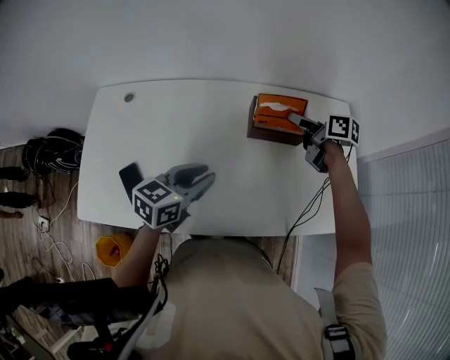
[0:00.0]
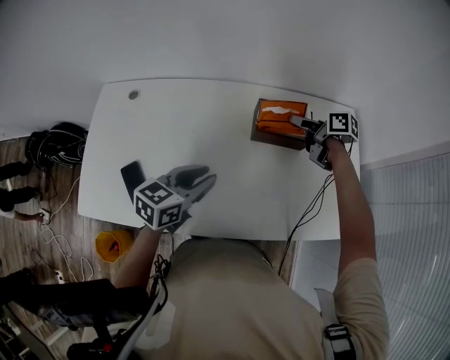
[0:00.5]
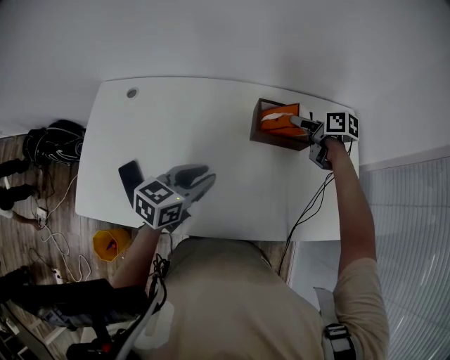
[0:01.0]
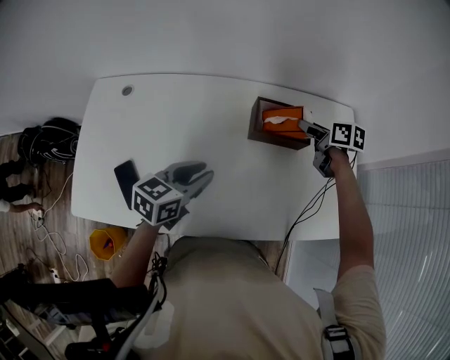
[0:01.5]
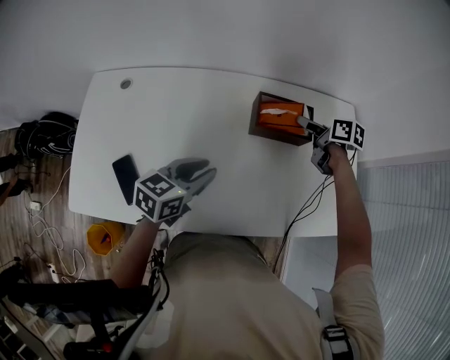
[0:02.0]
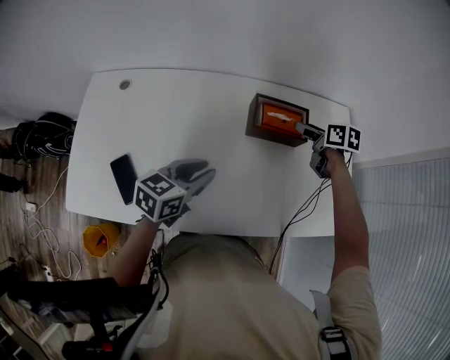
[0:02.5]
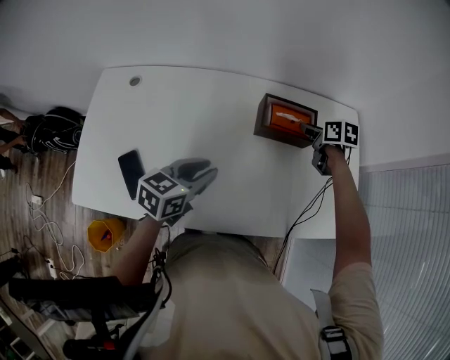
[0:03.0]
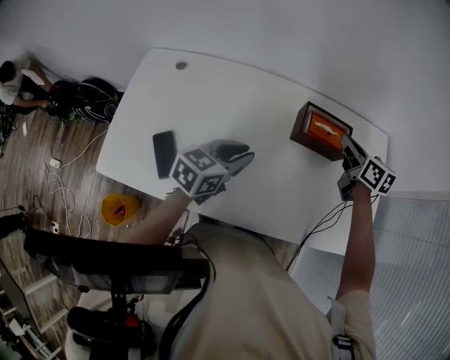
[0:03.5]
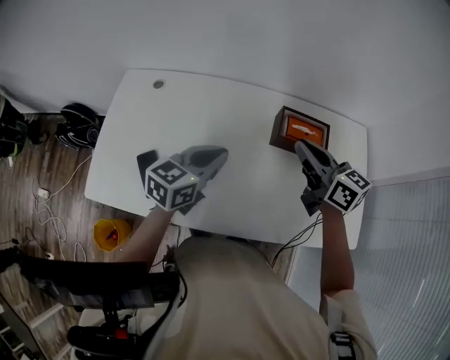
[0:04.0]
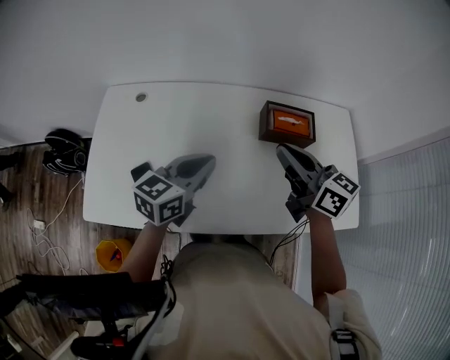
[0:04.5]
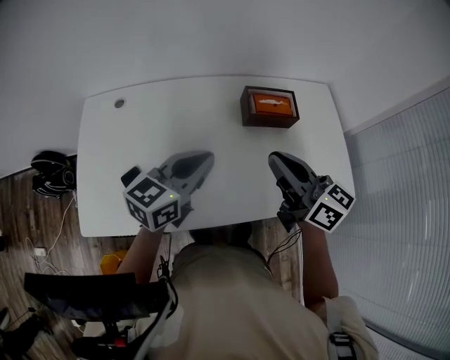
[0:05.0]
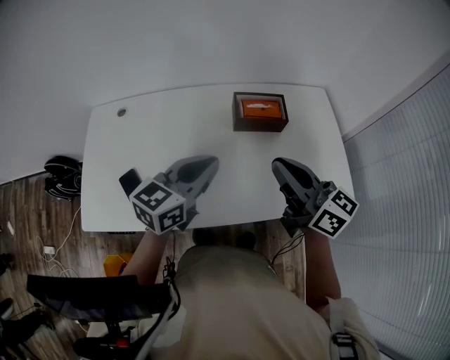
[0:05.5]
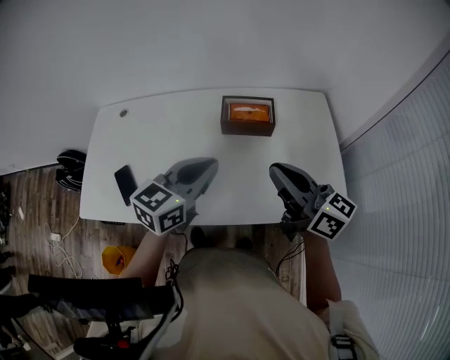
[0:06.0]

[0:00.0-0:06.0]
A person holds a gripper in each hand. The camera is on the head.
0:00.0 to 0:02.0: The grippers move only a little.
0:02.0 to 0:04.0: The left gripper changes place by approximately 5 cm, and closes; the right gripper goes about 20 cm to the left, upward and backward, rotates roughly 40 degrees, and closes.
0:04.0 to 0:06.0: The left gripper goes roughly 20 cm to the right and backward; the right gripper heads backward and to the right, covering some 20 cm.

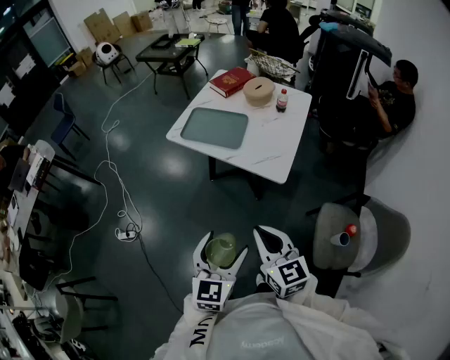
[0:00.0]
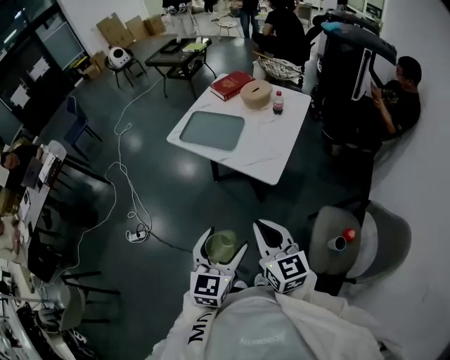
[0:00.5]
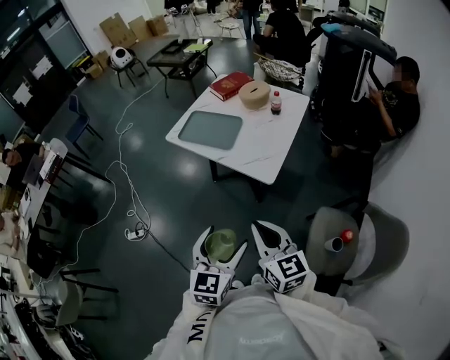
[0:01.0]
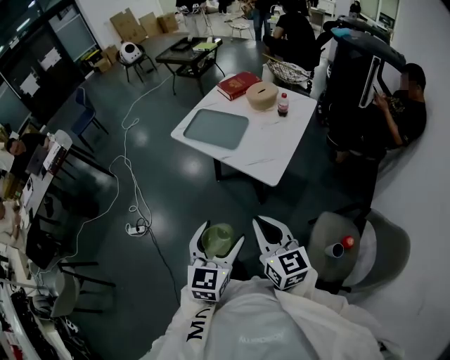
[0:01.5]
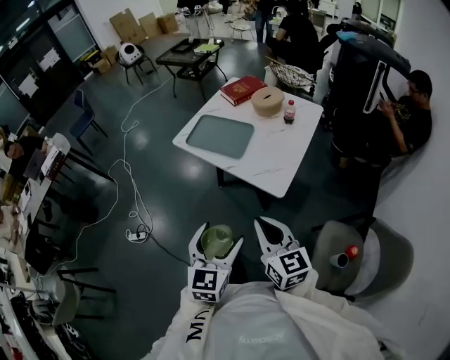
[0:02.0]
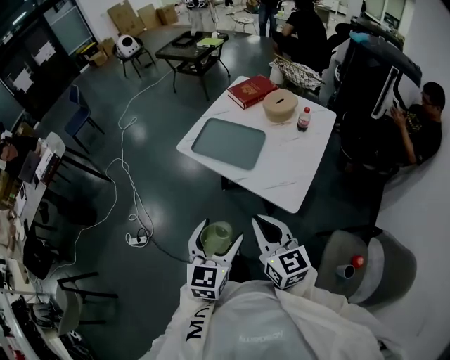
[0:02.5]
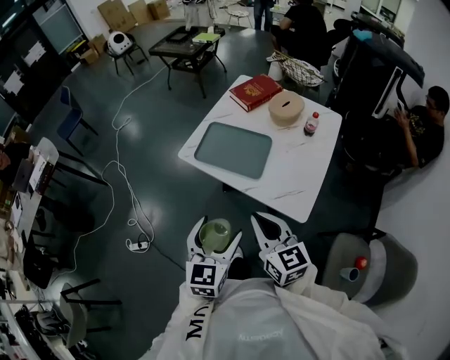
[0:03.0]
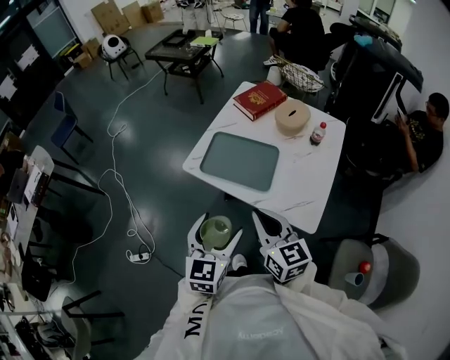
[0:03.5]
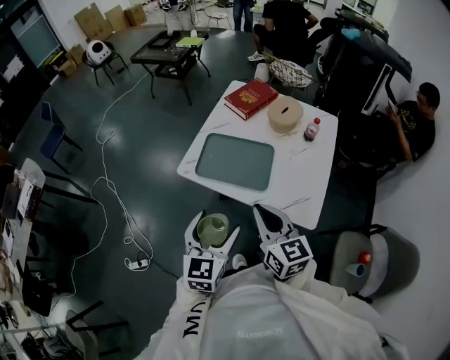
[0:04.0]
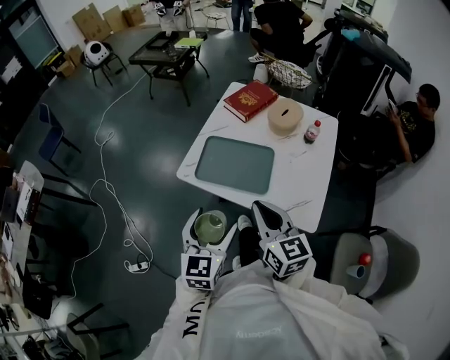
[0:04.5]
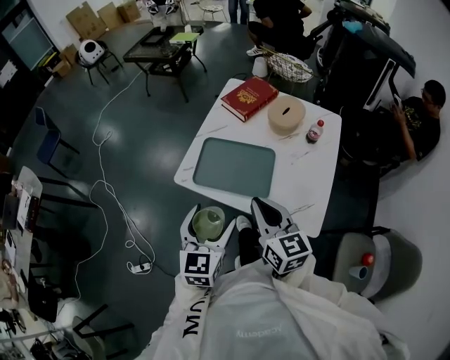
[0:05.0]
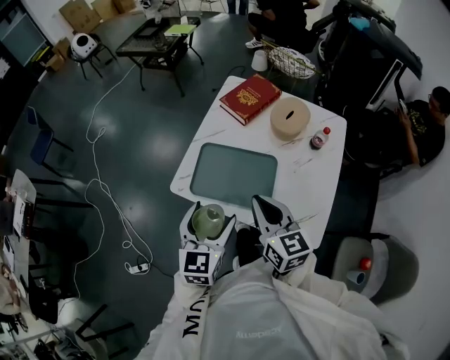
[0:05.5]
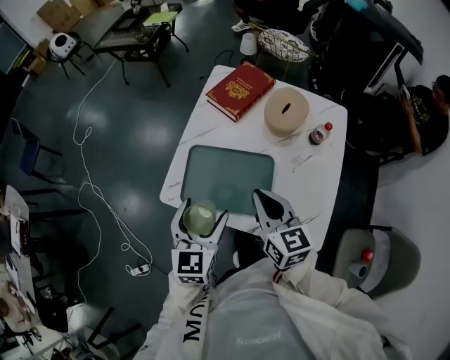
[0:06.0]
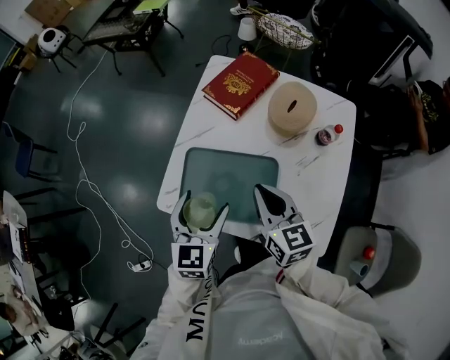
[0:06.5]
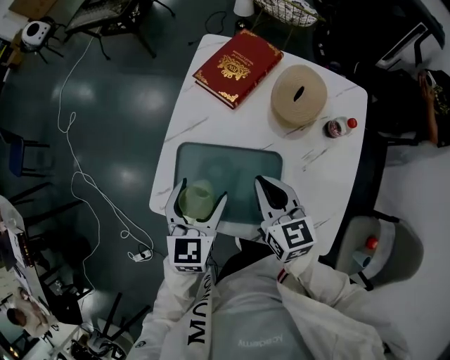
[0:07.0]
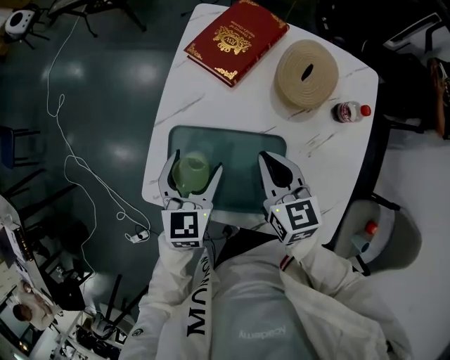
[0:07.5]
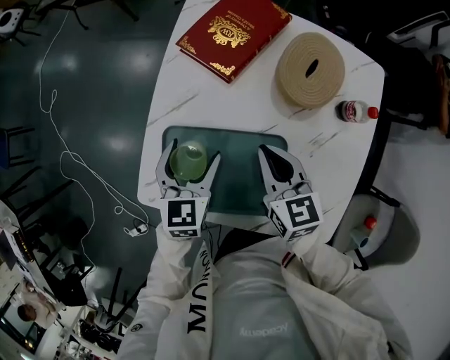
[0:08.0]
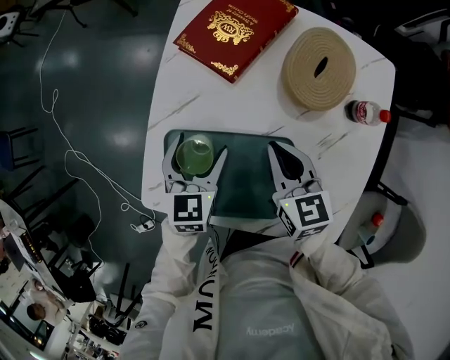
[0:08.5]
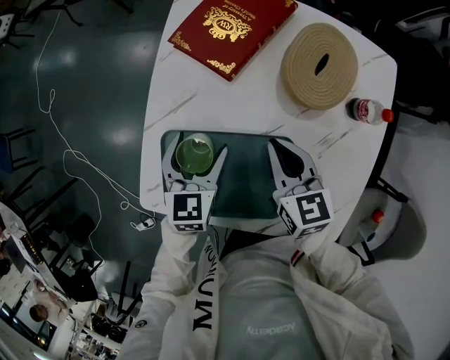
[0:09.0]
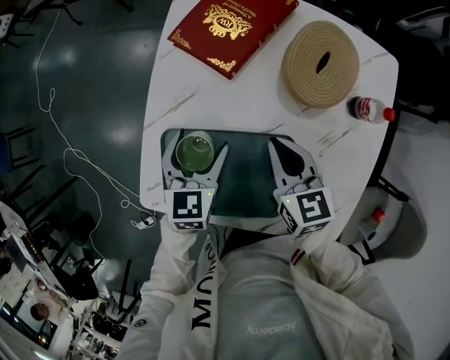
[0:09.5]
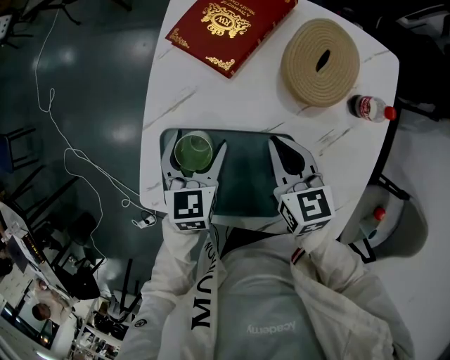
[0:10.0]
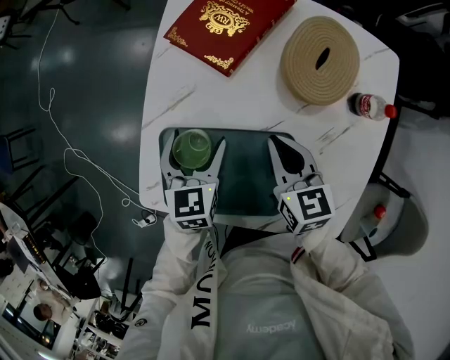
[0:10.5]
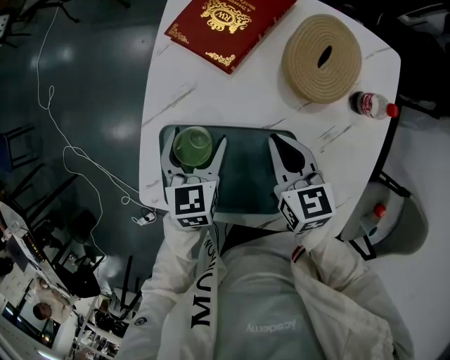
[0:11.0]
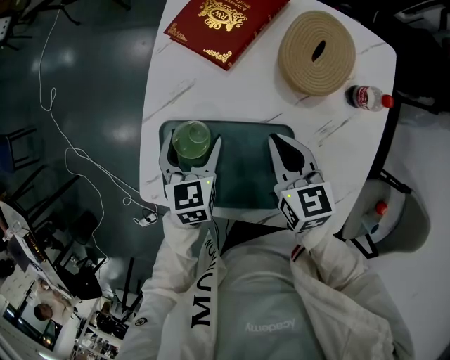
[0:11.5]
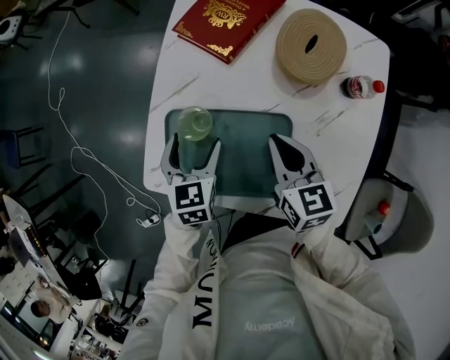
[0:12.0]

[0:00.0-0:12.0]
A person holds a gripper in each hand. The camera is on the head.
0:00.0 to 0:02.0: The grippers both shift to the right and forward by approximately 10 cm.
0:02.0 to 0:04.0: Both grippers travel together forward and to the left, about 30 cm.
0:04.0 to 0:06.0: Both grippers travel together forward, approximately 20 cm.
0:06.0 to 0:08.0: Both grippers travel together forward and downward, approximately 25 cm.
0:08.0 to 0:10.0: The grippers make only small movements.
0:10.0 to 0:12.0: The left gripper moves backward, roughly 5 cm. Meanwhile the right gripper moves about 5 cm.

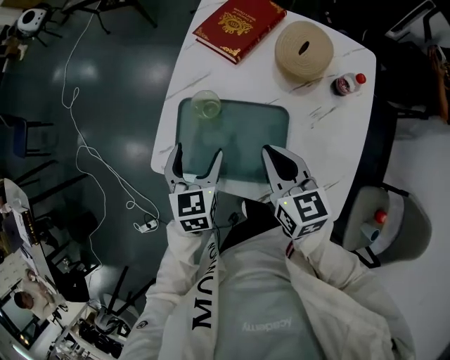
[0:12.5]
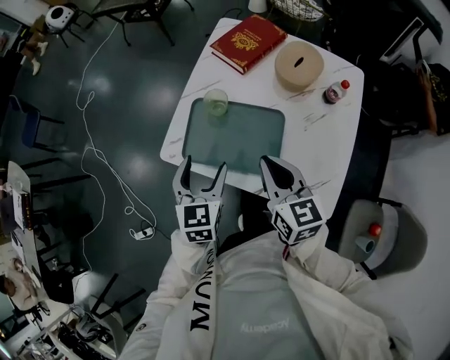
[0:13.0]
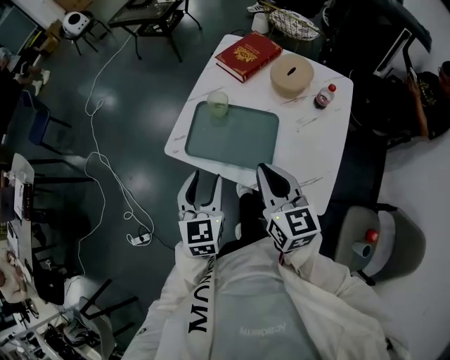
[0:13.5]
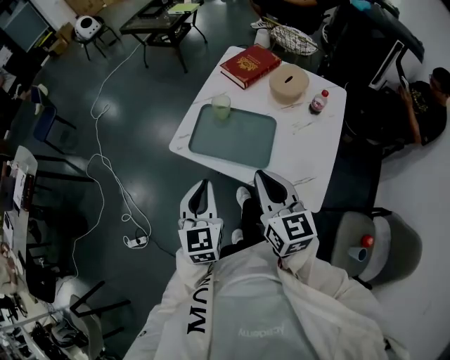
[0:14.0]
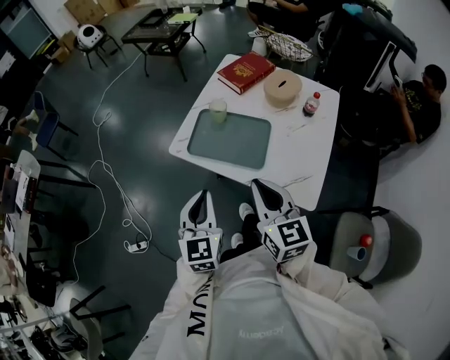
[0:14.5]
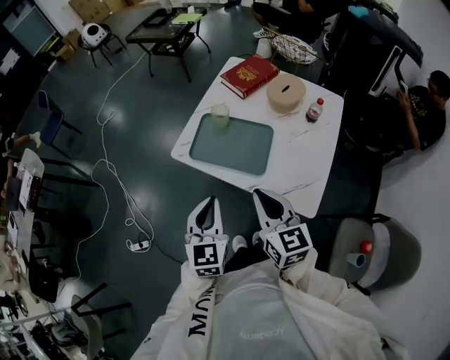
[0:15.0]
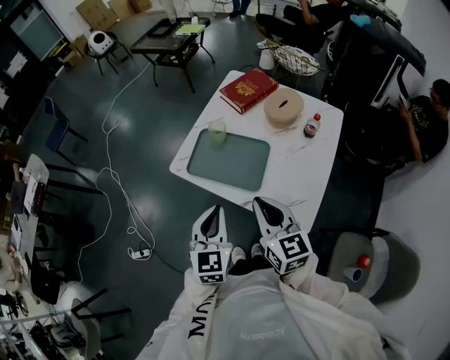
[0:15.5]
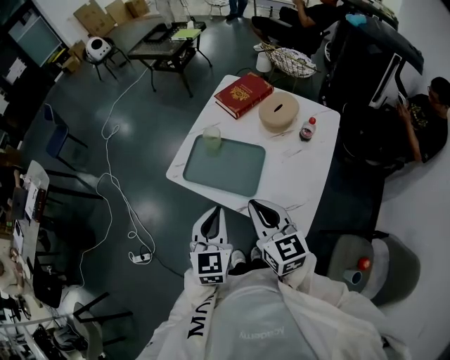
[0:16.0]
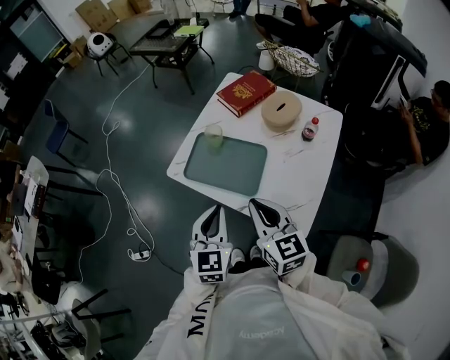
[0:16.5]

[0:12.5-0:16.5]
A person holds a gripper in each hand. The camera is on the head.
0:12.5 to 0:14.5: The grippers both shift backward and upward by approximately 30 cm. The left gripper rotates about 20 degrees, and closes its fingers.
0:14.5 to 0:16.5: The right gripper travels to the right by approximately 5 cm, while the left gripper is displaced to the right by some 10 cm.

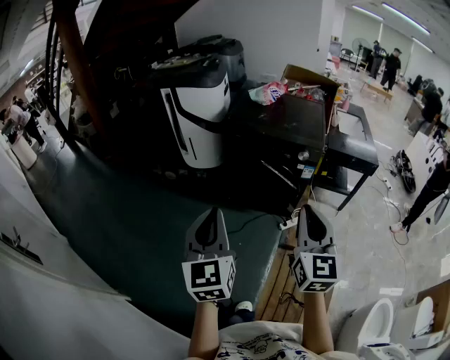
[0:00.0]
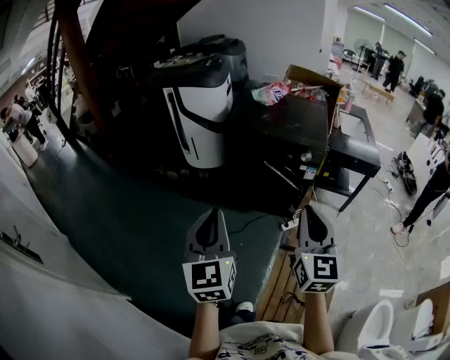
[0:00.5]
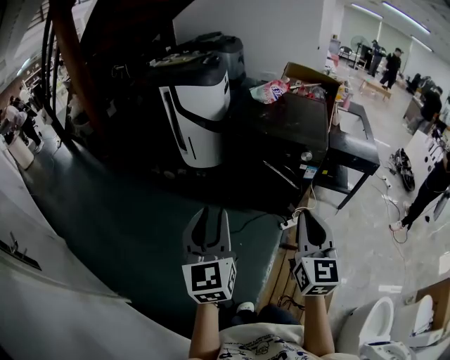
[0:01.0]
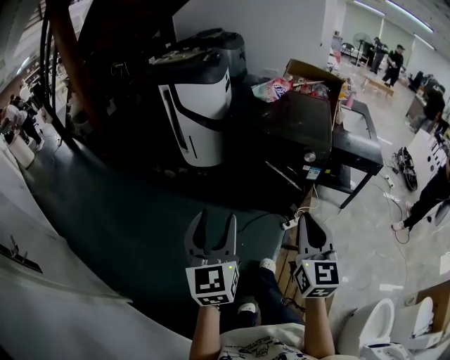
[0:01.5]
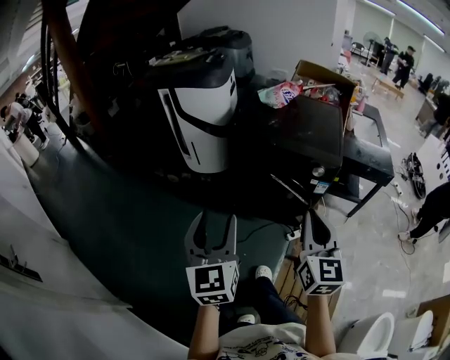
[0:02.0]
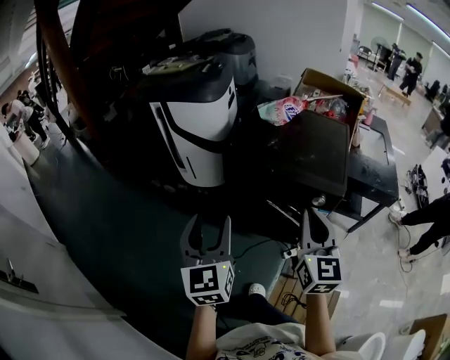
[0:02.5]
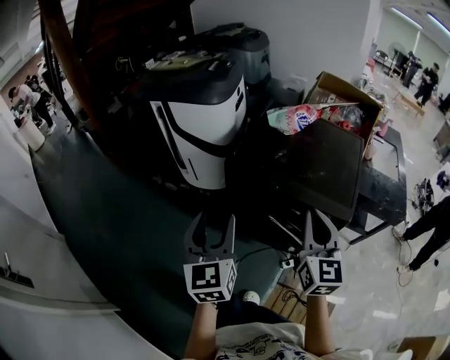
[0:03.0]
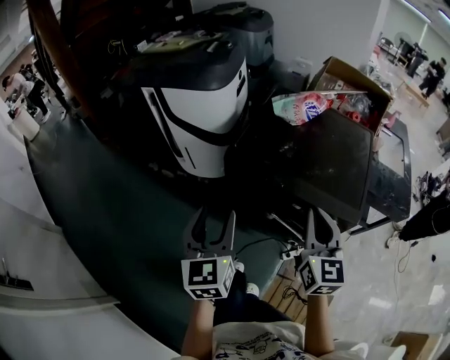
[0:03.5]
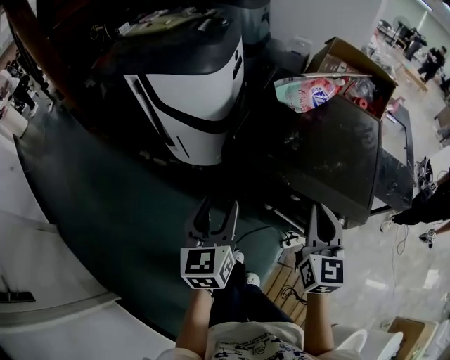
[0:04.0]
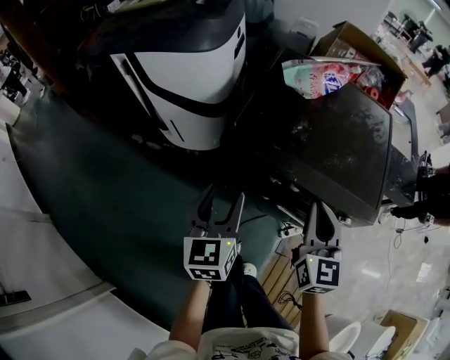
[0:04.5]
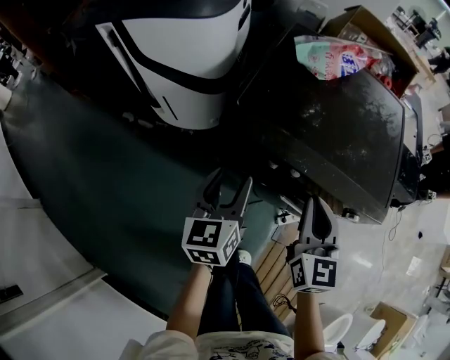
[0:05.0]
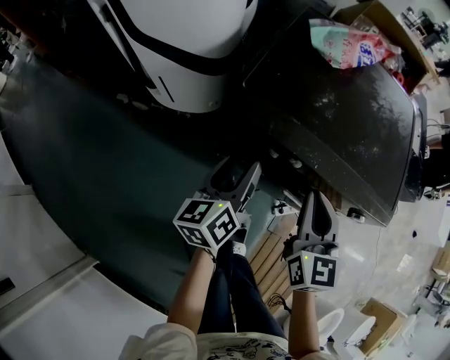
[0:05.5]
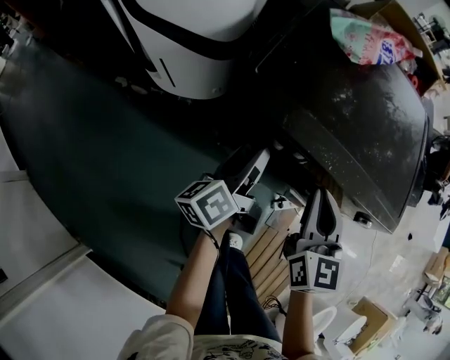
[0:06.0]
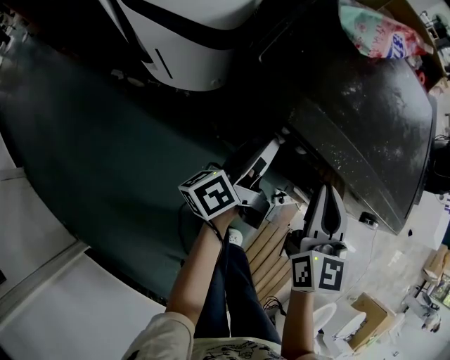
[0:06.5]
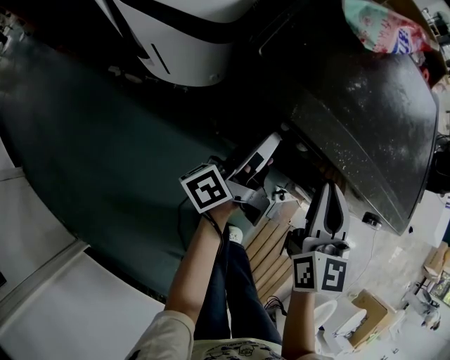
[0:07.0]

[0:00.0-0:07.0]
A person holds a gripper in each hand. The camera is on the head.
0:00.0 to 0:02.0: The grippers both shift forward by approximately 15 cm. The left gripper opens.
0:02.0 to 0:03.5: The two grippers go roughly 35 cm forward.
0:03.5 to 0:05.0: The two grippers go roughly 20 cm downward and forward. The left gripper turns by about 20 degrees.
0:05.0 to 0:07.0: The left gripper shifts about 15 cm downward and forward, and twists approximately 60 degrees counterclockwise, seen from behind; the right gripper goes roughly 10 cm downward.
